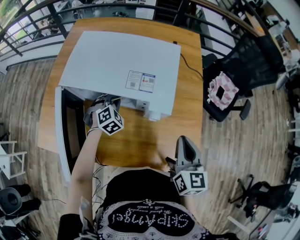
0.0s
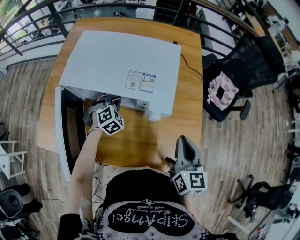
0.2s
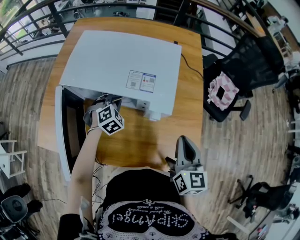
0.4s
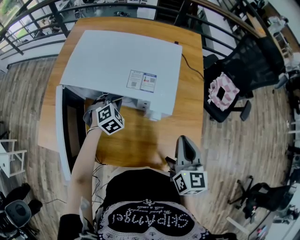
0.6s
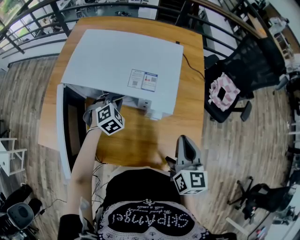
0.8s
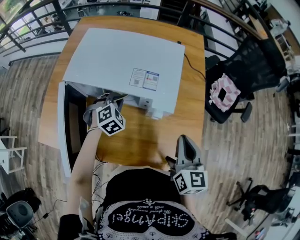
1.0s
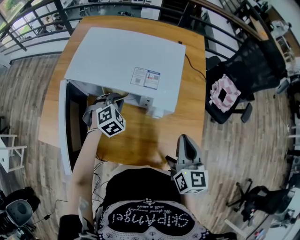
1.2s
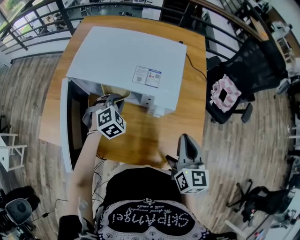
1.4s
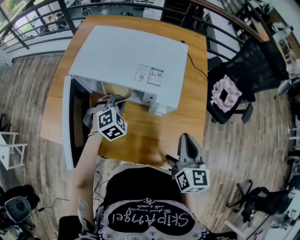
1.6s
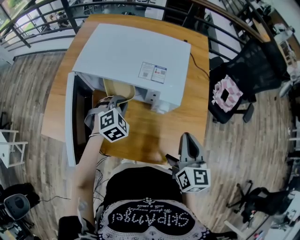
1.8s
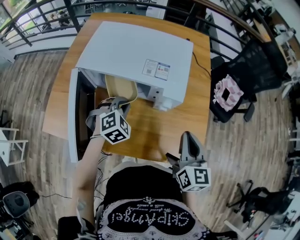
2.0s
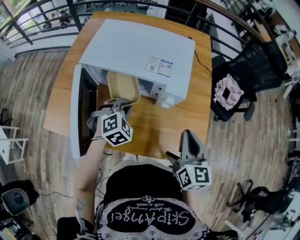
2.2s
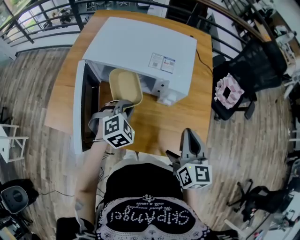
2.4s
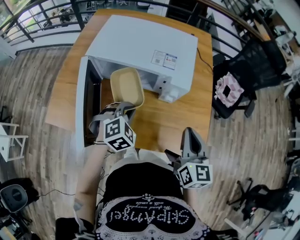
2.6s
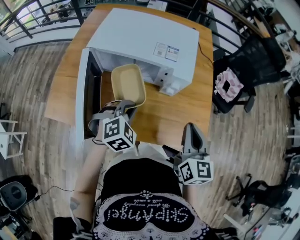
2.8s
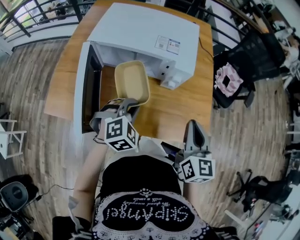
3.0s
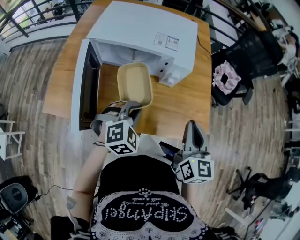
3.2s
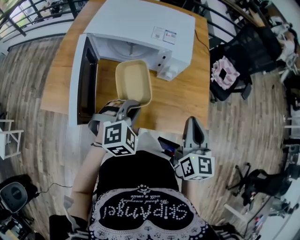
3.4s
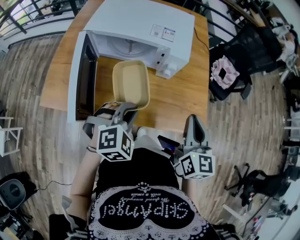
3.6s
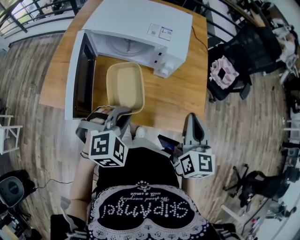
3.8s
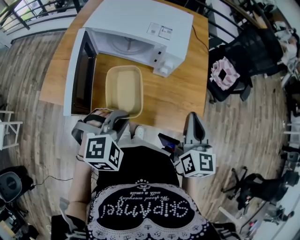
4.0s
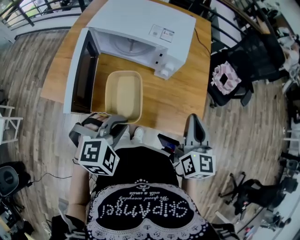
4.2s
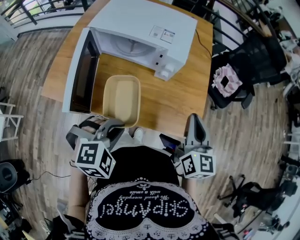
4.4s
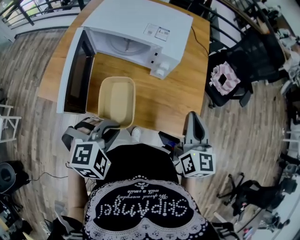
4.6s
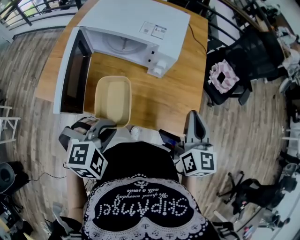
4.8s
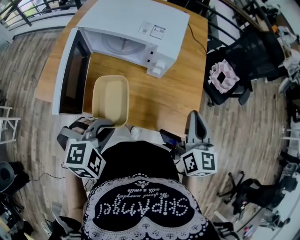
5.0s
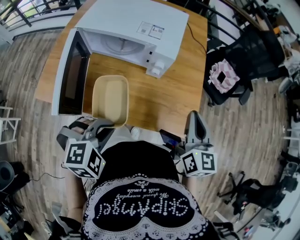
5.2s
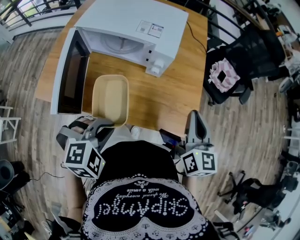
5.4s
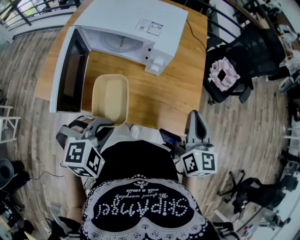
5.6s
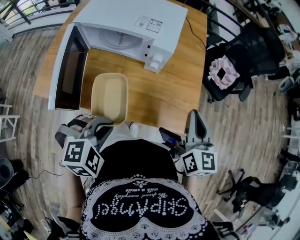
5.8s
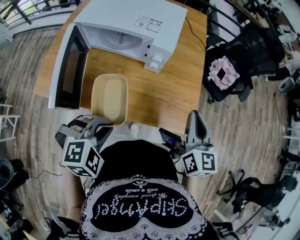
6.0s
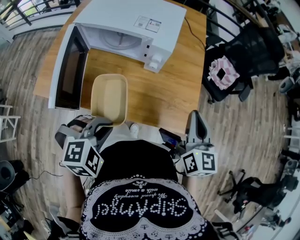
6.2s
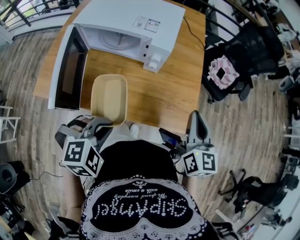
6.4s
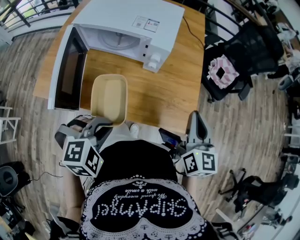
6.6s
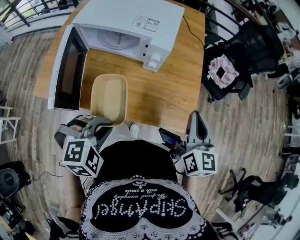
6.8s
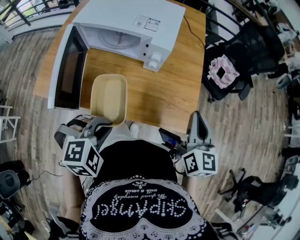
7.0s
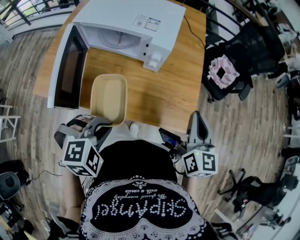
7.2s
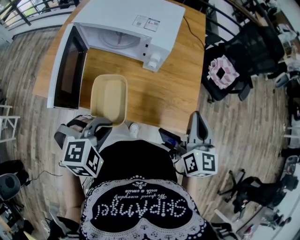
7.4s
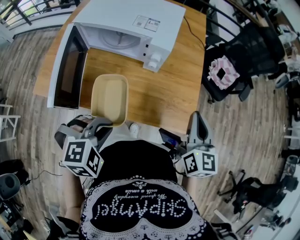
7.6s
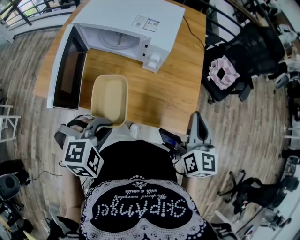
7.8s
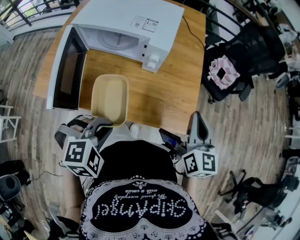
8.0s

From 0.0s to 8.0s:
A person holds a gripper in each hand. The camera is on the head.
From 0.0s to 1.6s: The left gripper goes some 10 cm upward and backward.
From 1.6s to 3.2s: The left gripper moves backward, approximately 20 cm, while the right gripper travels backward by roughly 10 cm.
From 3.2s to 4.8s: The right gripper heads to the right, covering some 5 cm. Meanwhile the left gripper moves backward, roughly 10 cm.
From 4.8s to 6.4s: The grippers make only small movements.
From 6.4s to 8.0s: Both grippers stay about where they are.

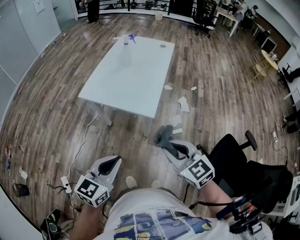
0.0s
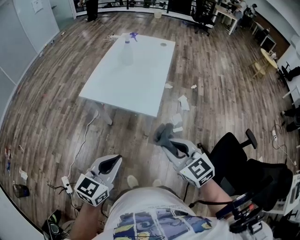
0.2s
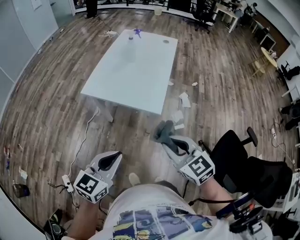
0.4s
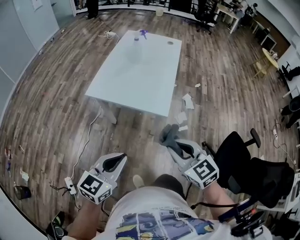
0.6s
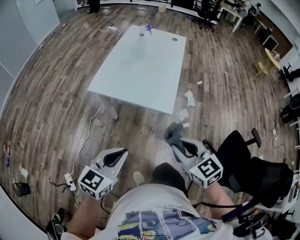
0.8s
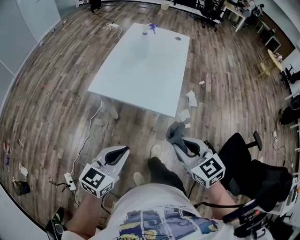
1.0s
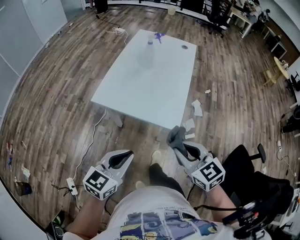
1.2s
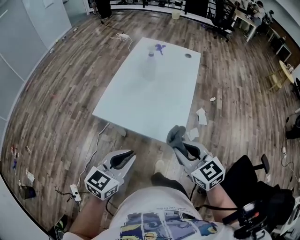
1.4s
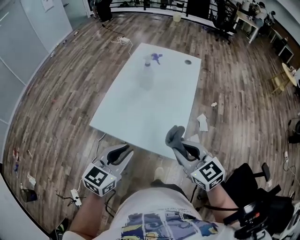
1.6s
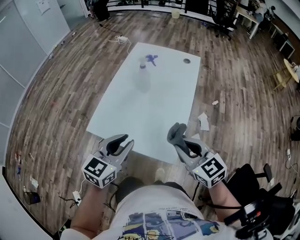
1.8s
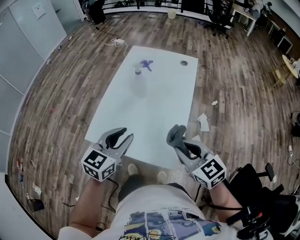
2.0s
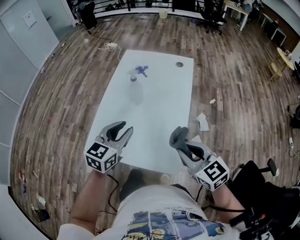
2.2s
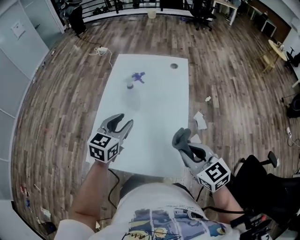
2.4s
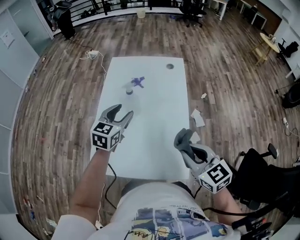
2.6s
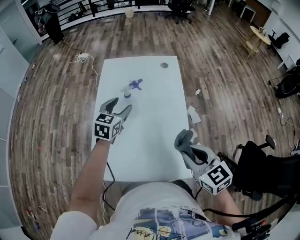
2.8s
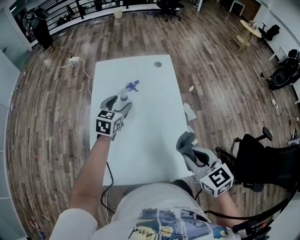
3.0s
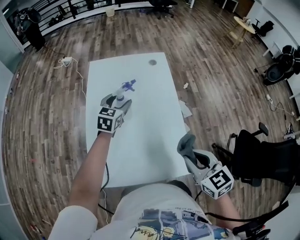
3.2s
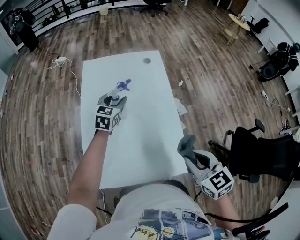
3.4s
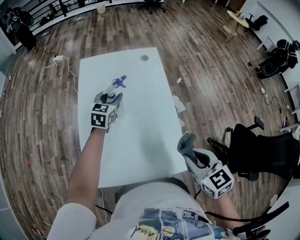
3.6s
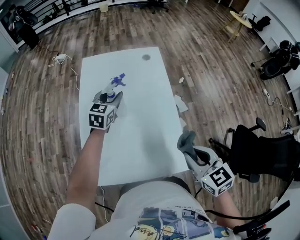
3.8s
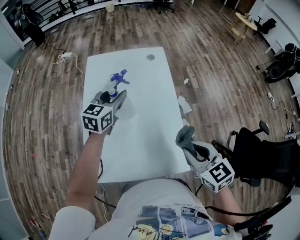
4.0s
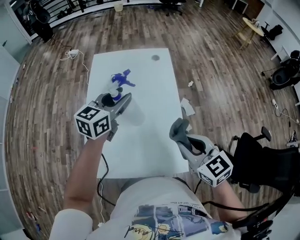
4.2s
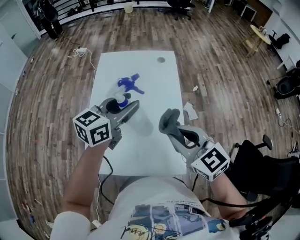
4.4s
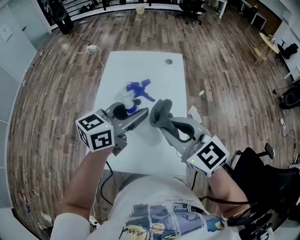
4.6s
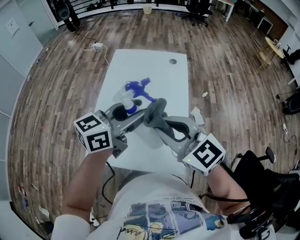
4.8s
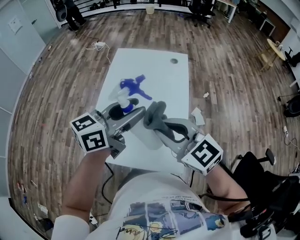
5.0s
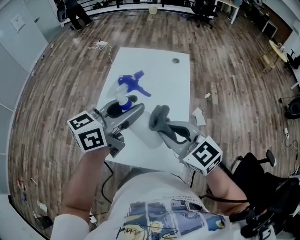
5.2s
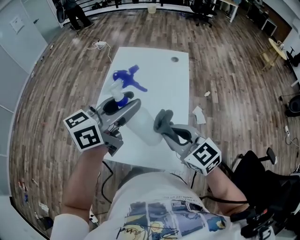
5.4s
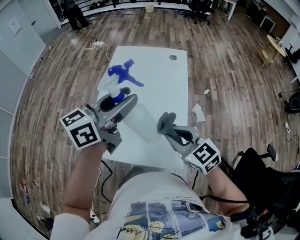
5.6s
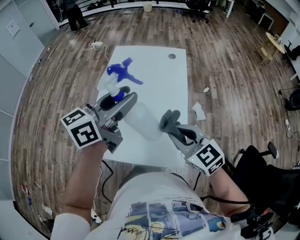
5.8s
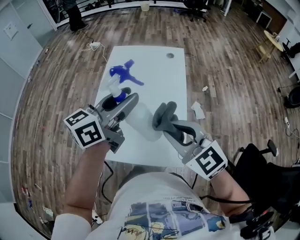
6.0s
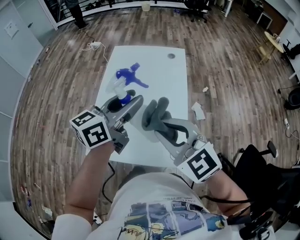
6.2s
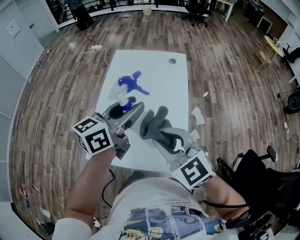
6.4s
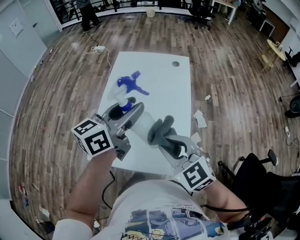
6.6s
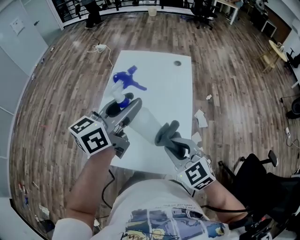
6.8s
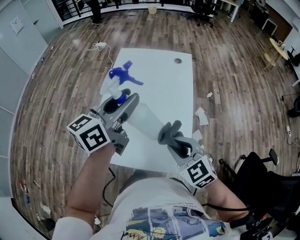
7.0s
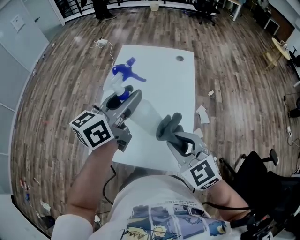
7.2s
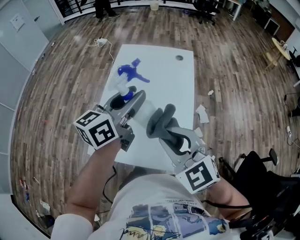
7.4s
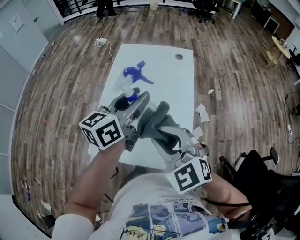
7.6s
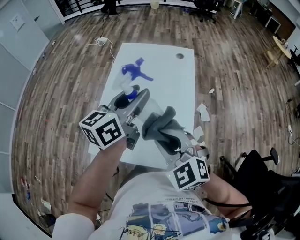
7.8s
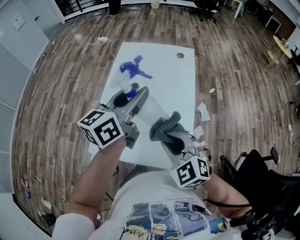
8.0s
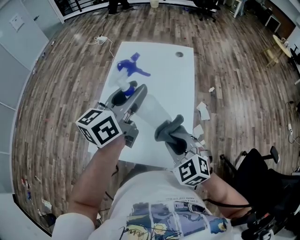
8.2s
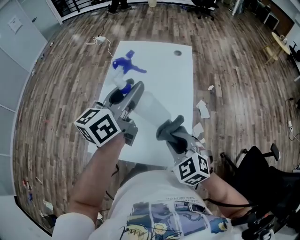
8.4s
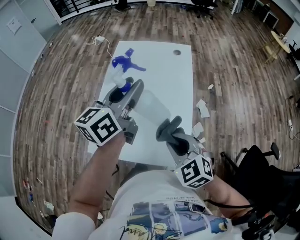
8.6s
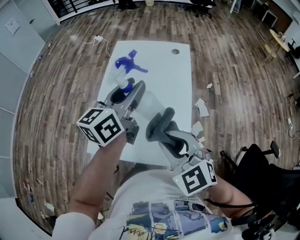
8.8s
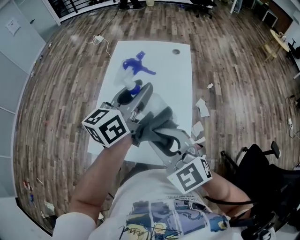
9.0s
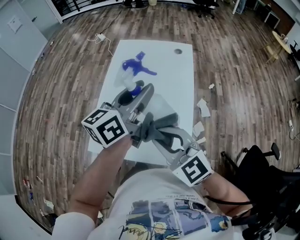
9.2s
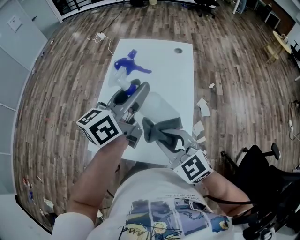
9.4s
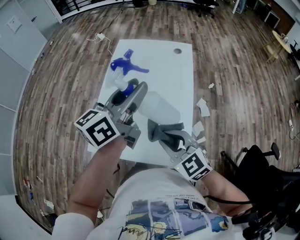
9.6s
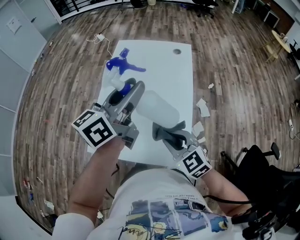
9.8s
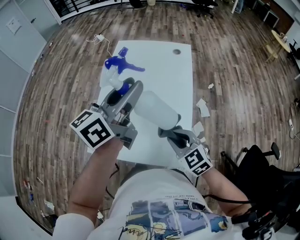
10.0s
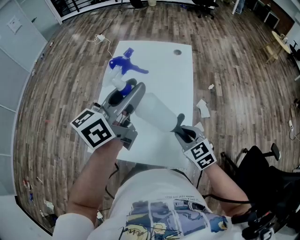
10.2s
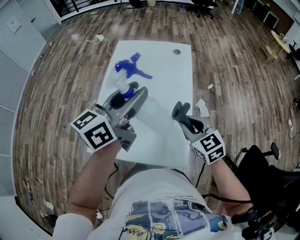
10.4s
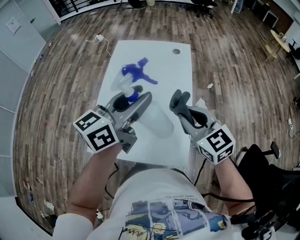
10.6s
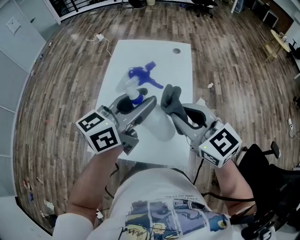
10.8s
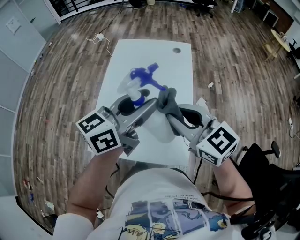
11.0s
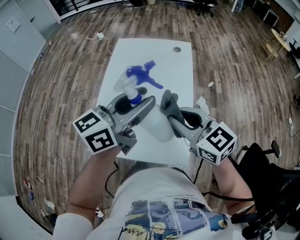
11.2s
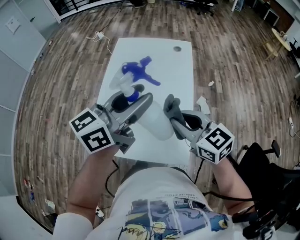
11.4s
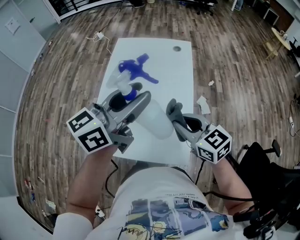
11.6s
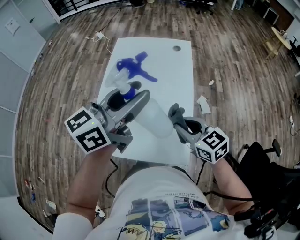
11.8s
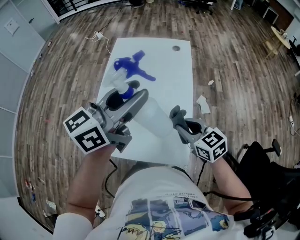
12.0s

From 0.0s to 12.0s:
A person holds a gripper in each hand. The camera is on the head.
From 0.0s to 1.6s: The two grippers go some 25 cm forward.
From 1.6s to 3.0s: The left gripper travels forward by about 40 cm, and opens up; the right gripper goes some 10 cm forward, and swivels some 30 degrees.
From 3.0s to 4.4s: The left gripper is displaced upward, backward and to the right by approximately 20 cm, swivels some 30 degrees, and closes, while the right gripper heads upward, covering some 5 cm.
From 4.4s to 6.0s: The left gripper is displaced backward and upward by about 10 cm. Meanwhile the right gripper swings up and down, some 10 cm each way, with 2 reversals.
From 6.0s to 7.6s: The right gripper shifts approximately 5 cm to the left, and reaches approximately 10 cm downward, then returns.
From 7.6s to 9.0s: The right gripper reaches approximately 10 cm downward, then returns.
From 9.0s to 10.4s: The right gripper is displaced to the right, downward and forward by some 20 cm, and turns by some 30 degrees.
From 10.4s to 12.0s: The right gripper reaches about 15 cm upward, then returns.

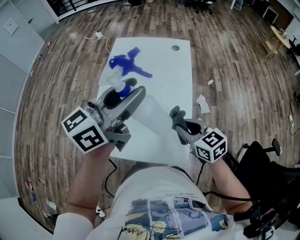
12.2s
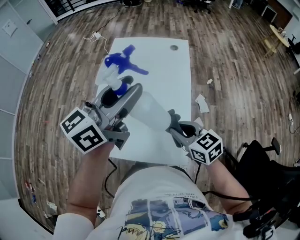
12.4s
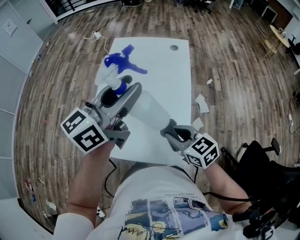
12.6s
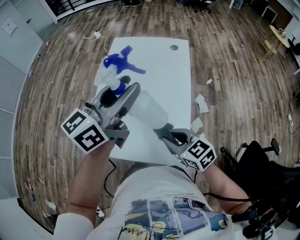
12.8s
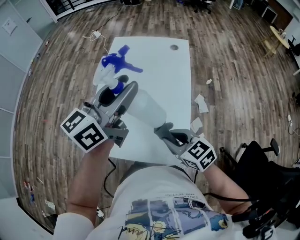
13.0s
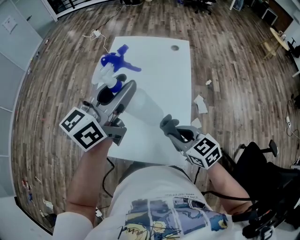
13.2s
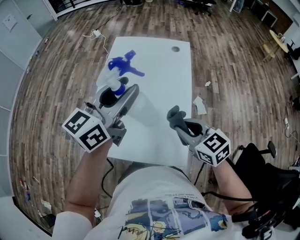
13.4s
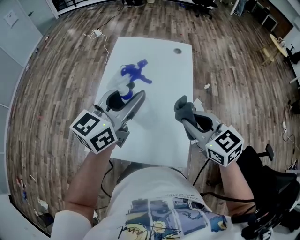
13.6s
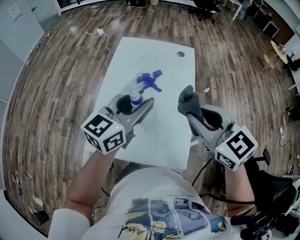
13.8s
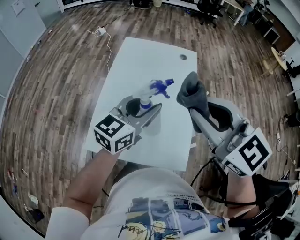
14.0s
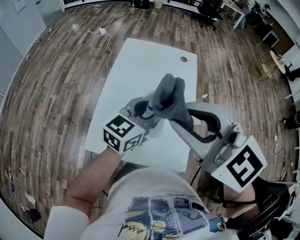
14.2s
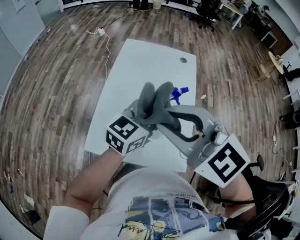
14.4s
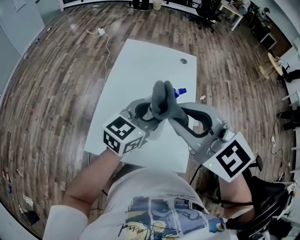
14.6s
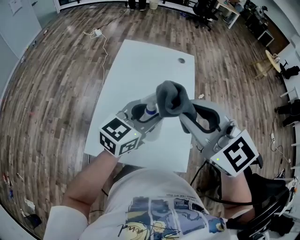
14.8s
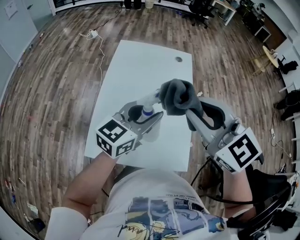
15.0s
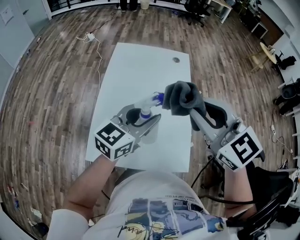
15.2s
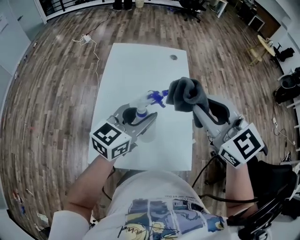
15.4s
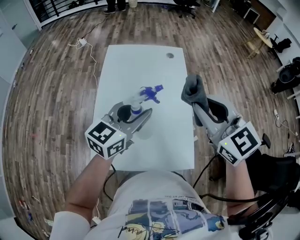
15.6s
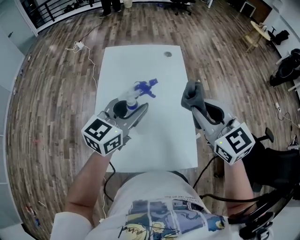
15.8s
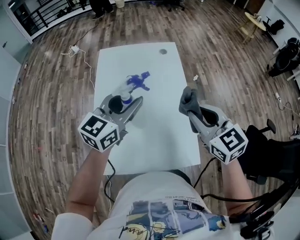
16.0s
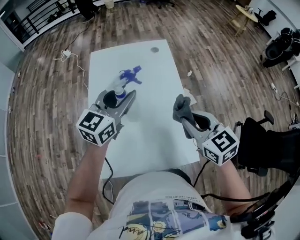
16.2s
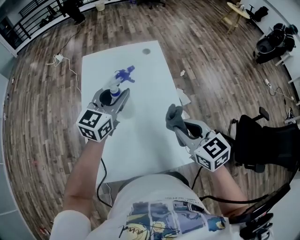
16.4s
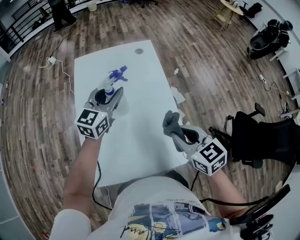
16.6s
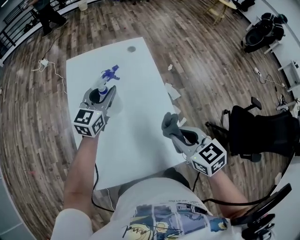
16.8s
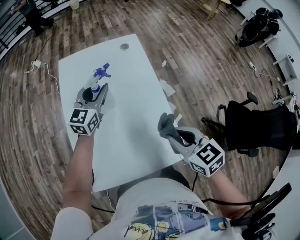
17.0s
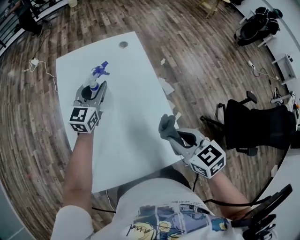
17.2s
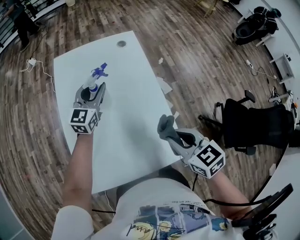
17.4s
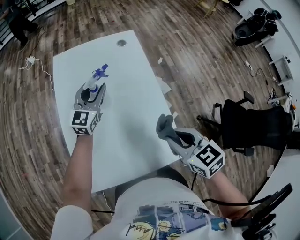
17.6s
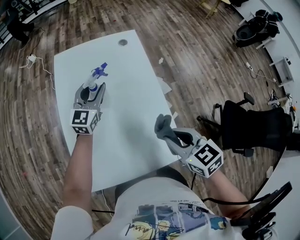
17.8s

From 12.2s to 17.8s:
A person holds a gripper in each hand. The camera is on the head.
From 12.2s to 13.6s: The left gripper shifts by approximately 5 cm. Meanwhile the right gripper is displaced upward by roughly 10 cm.
From 13.6s to 15.0s: The left gripper shifts roughly 5 cm downward. The right gripper is displaced upward and to the left by roughly 15 cm, and rotates approximately 20 degrees.
From 15.0s to 16.4s: The right gripper moves downward, roughly 20 cm, and changes its angle by some 40 degrees, while the left gripper shifts some 15 cm forward.
From 16.4s to 17.8s: The left gripper shifts roughly 15 cm downward and forward.
